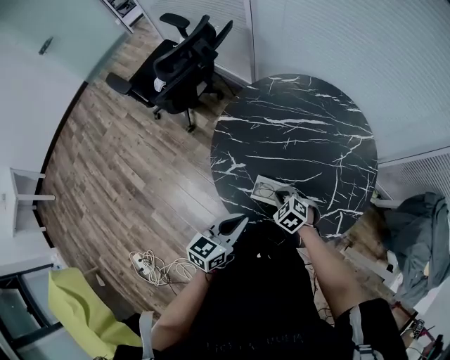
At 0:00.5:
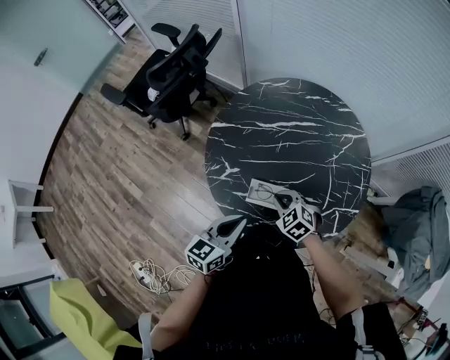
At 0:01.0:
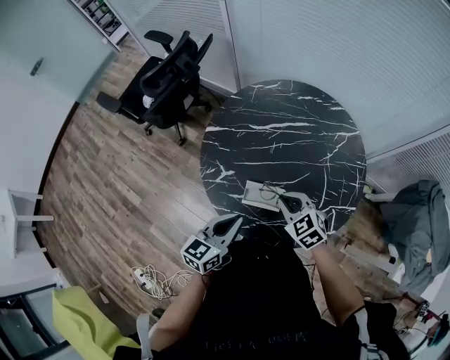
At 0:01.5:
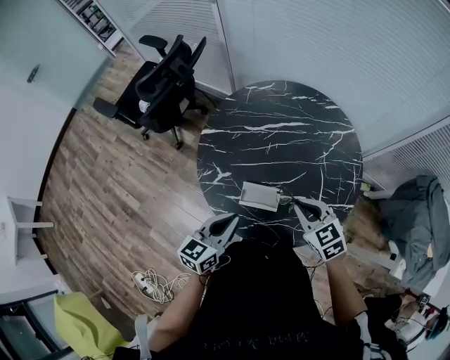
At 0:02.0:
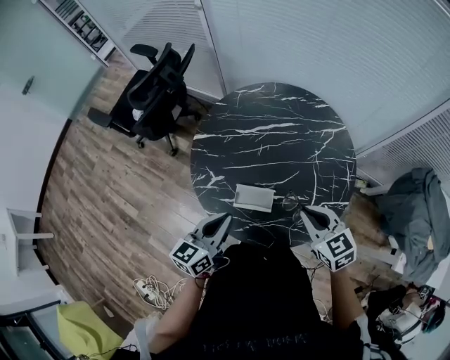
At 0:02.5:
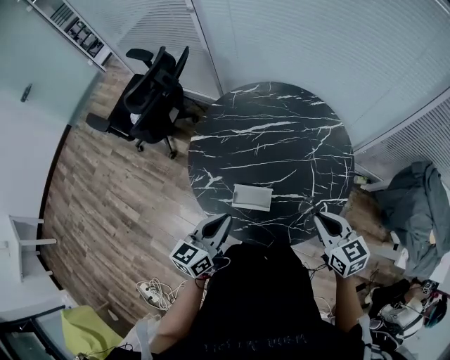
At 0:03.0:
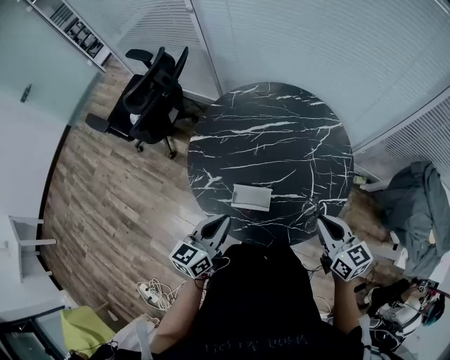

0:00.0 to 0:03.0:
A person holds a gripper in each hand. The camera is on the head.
0:00.0 to 0:01.5: The right gripper goes approximately 20 cm upward and to the right, and turns by some 30 degrees.
0:01.5 to 0:03.0: The right gripper moves to the right, upward and backward, approximately 15 cm, and turns by about 30 degrees.

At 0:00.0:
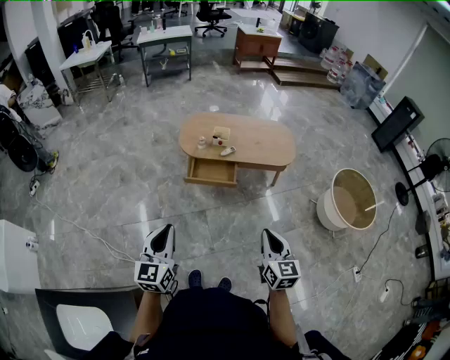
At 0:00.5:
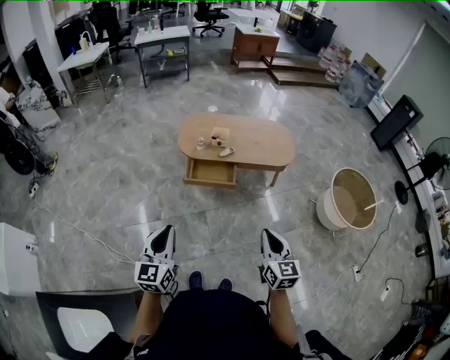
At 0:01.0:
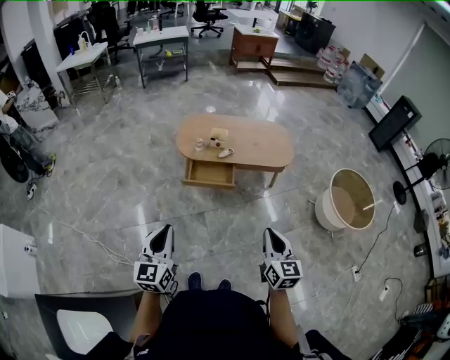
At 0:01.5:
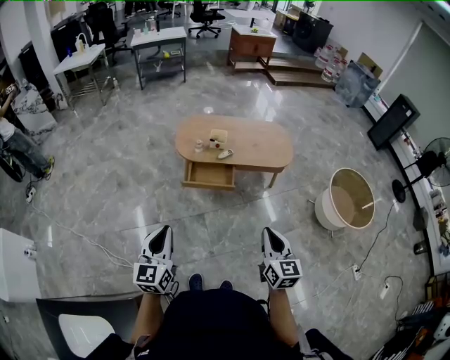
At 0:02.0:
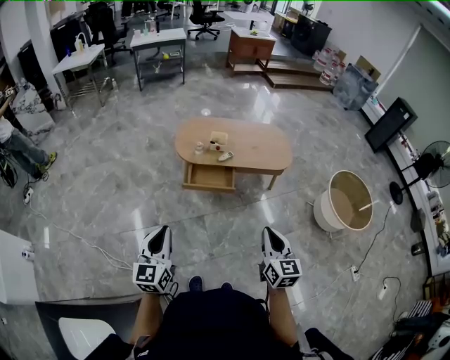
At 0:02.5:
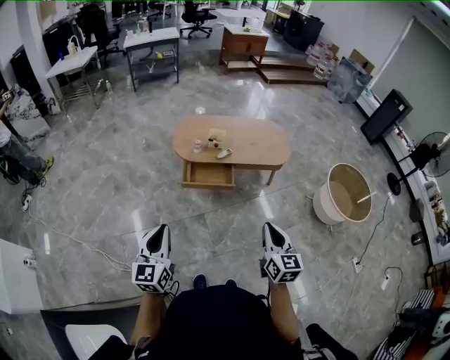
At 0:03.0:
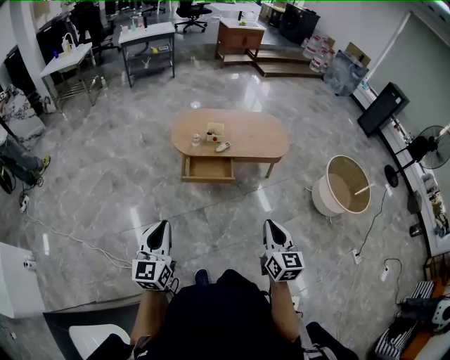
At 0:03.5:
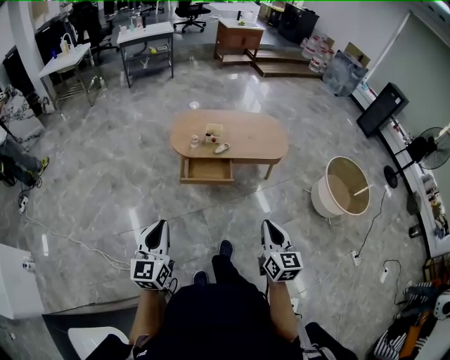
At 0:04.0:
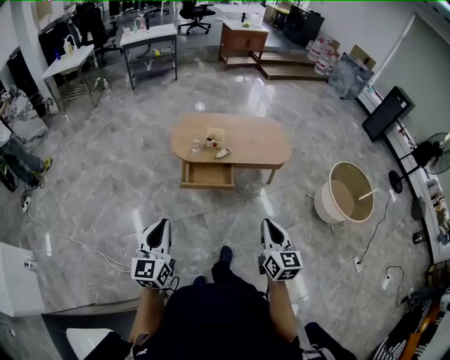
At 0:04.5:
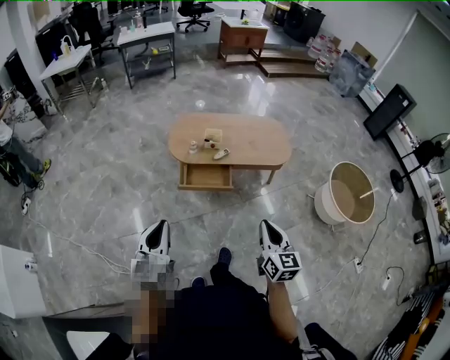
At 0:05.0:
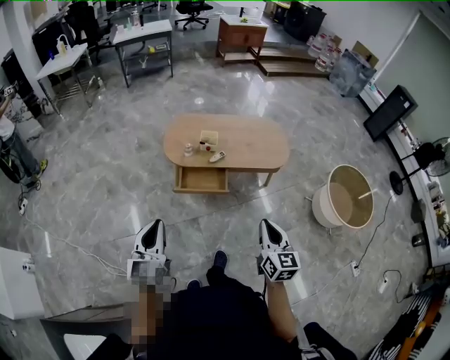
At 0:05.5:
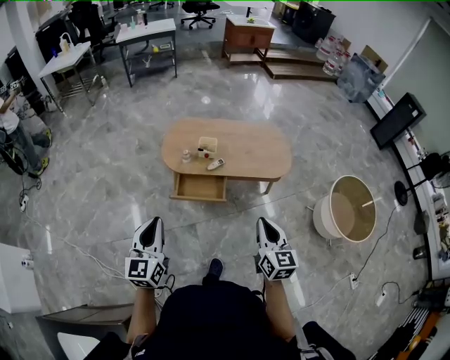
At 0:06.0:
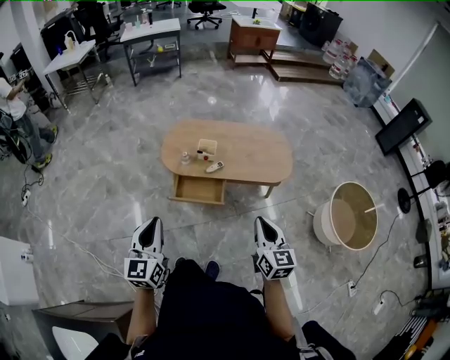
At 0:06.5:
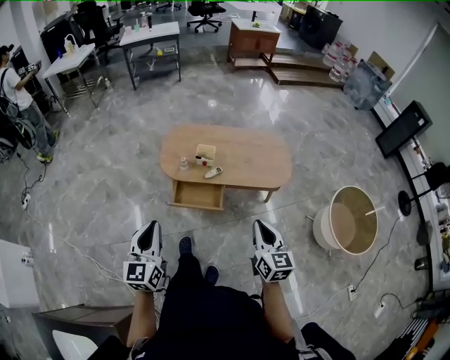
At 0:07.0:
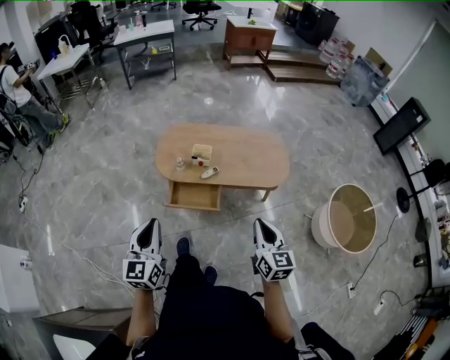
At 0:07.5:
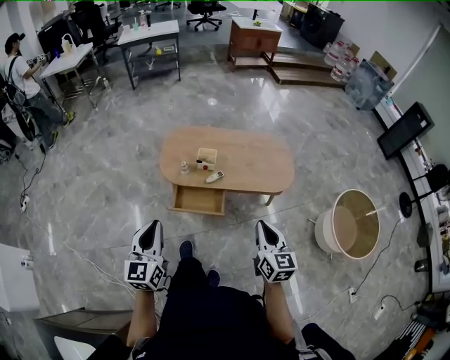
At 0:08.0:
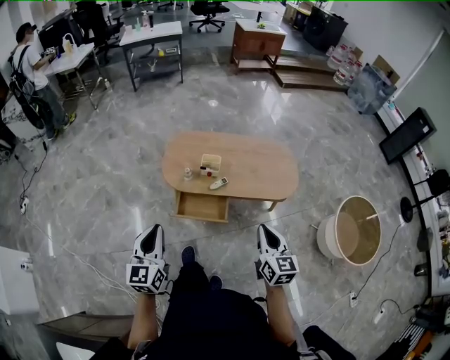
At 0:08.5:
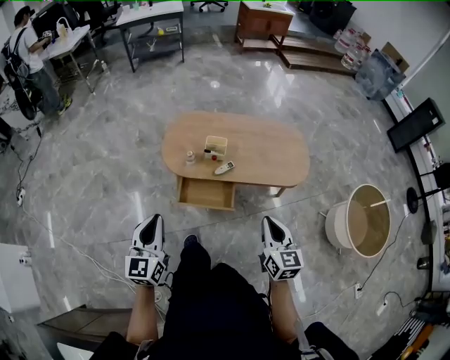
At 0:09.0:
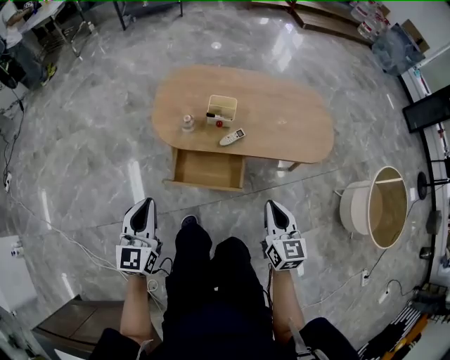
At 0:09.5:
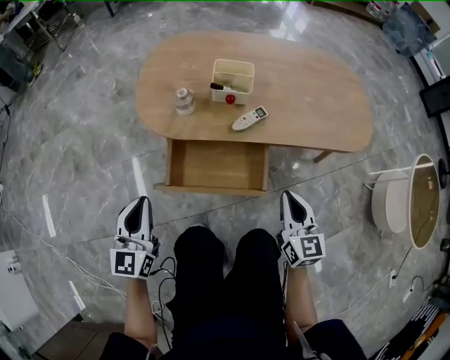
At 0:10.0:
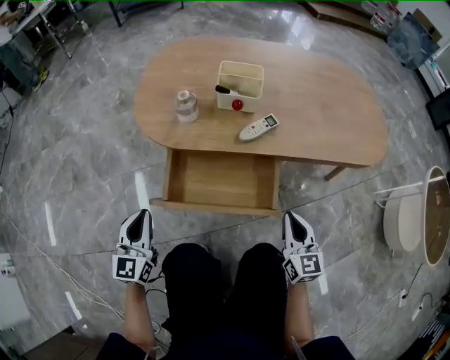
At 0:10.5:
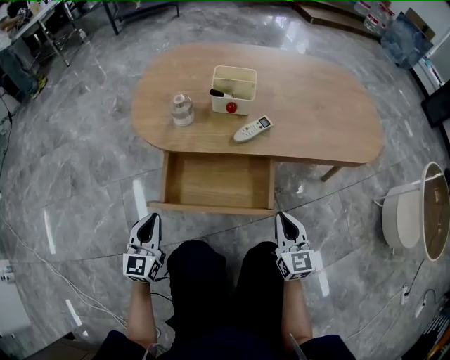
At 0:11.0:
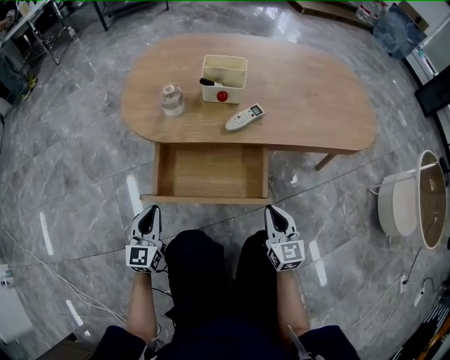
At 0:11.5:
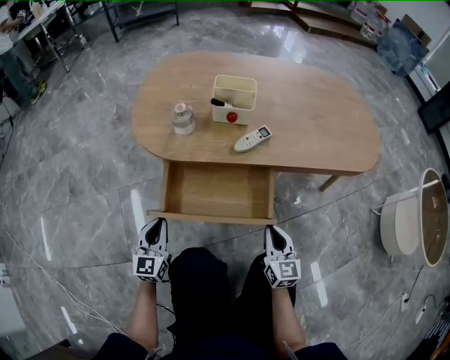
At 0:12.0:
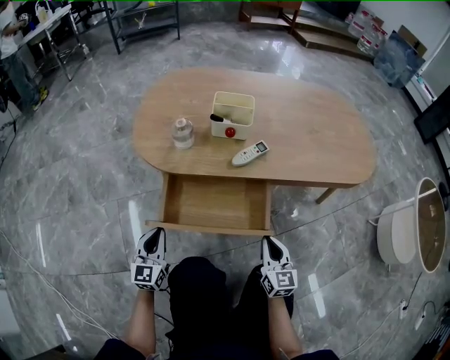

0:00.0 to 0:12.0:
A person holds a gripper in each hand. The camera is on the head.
0:00.0 to 0:02.0: The left gripper shifts by about 5 cm.
0:02.0 to 0:04.0: The grippers stay close to where they were, moving slightly.
0:04.0 to 0:06.0: Both grippers travel together forward and to the right, about 20 cm.
0:06.0 to 0:08.0: The grippers both shift forward by some 10 cm.
0:08.0 to 0:10.0: The grippers both shift downward by roughly 60 cm.
0:10.0 to 0:12.0: The grippers both shift downward by approximately 5 cm.

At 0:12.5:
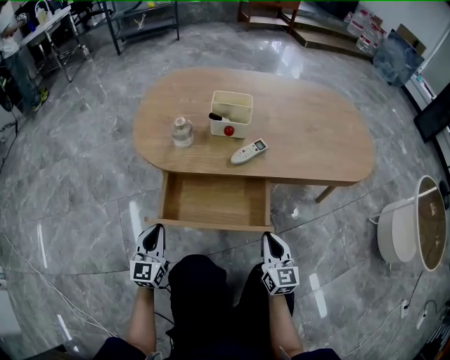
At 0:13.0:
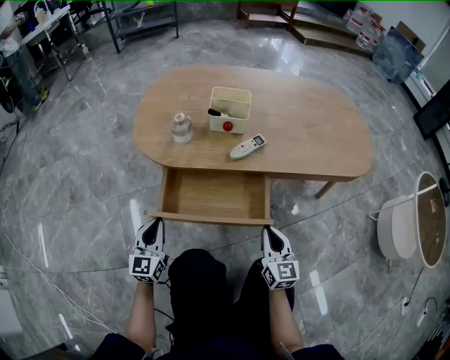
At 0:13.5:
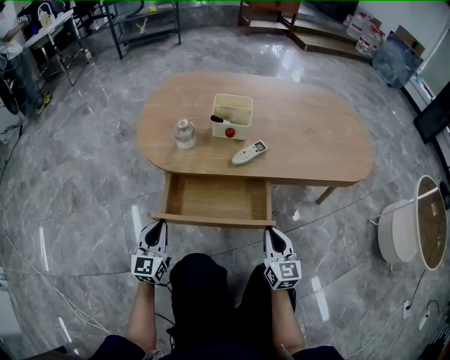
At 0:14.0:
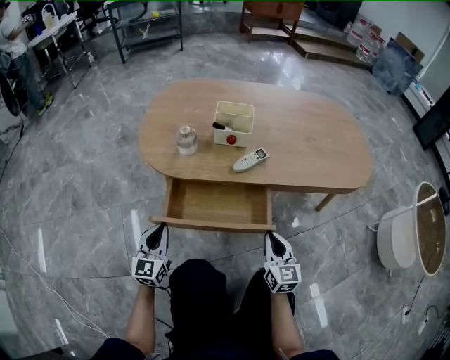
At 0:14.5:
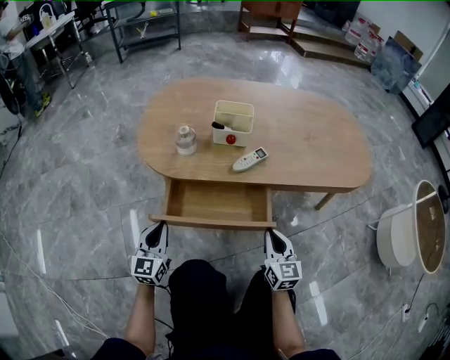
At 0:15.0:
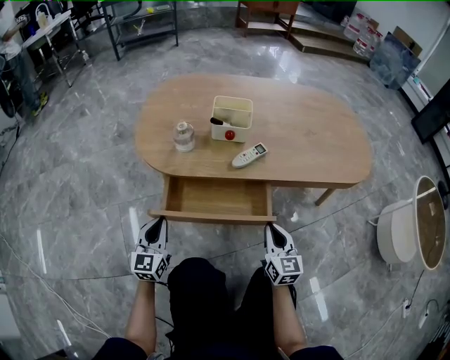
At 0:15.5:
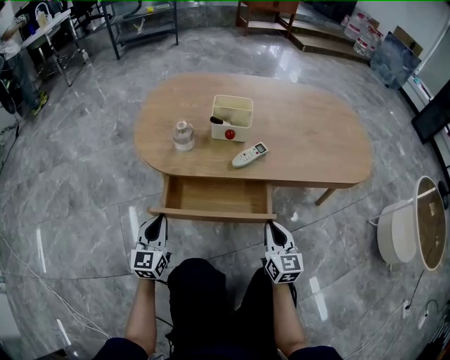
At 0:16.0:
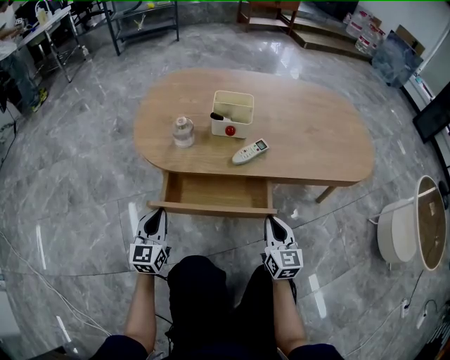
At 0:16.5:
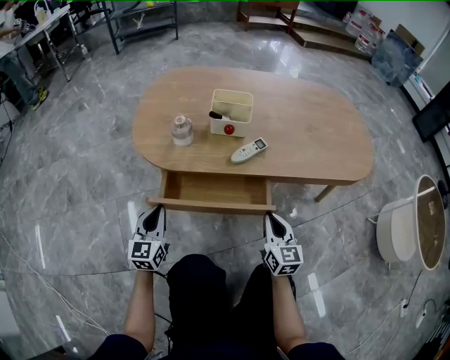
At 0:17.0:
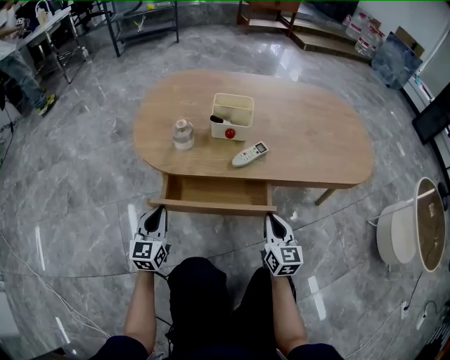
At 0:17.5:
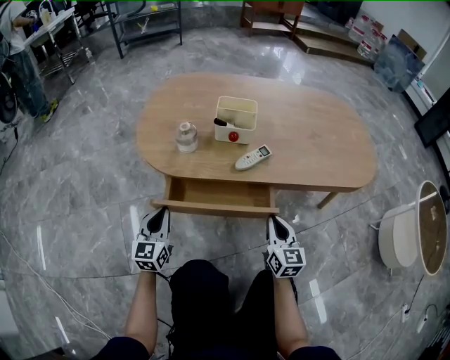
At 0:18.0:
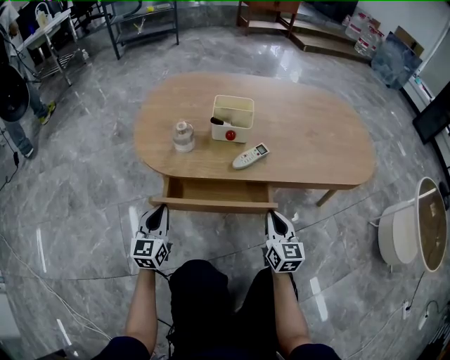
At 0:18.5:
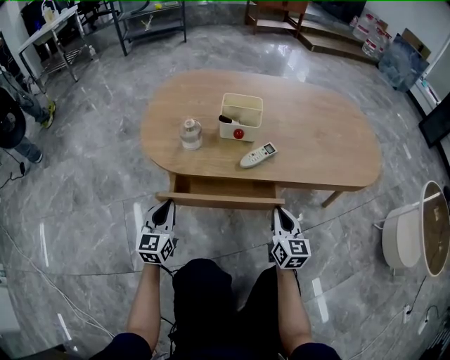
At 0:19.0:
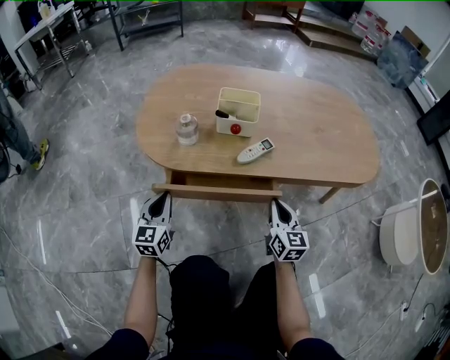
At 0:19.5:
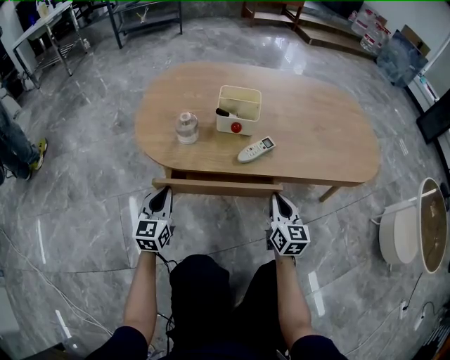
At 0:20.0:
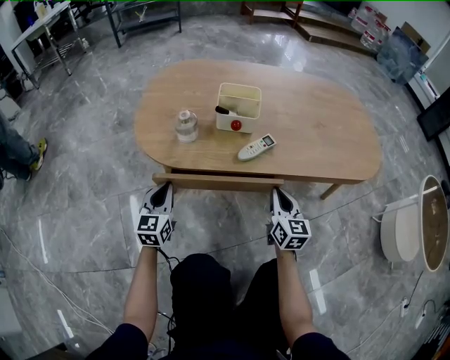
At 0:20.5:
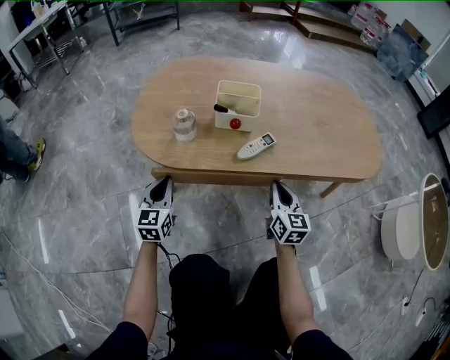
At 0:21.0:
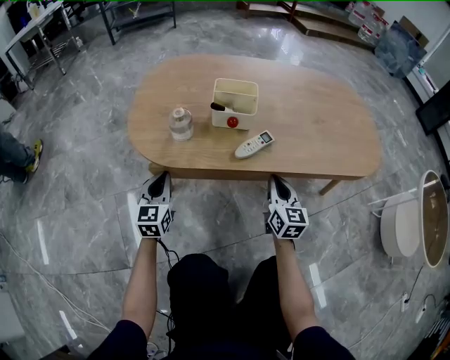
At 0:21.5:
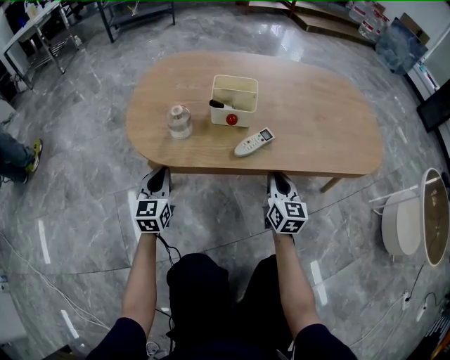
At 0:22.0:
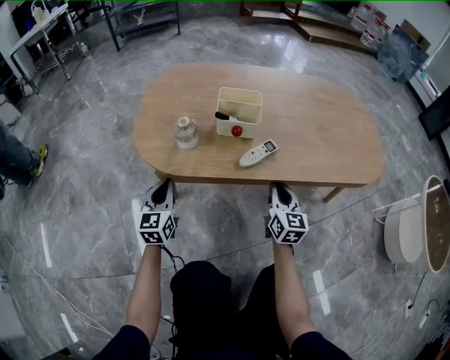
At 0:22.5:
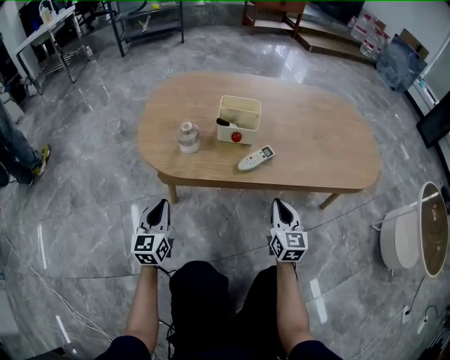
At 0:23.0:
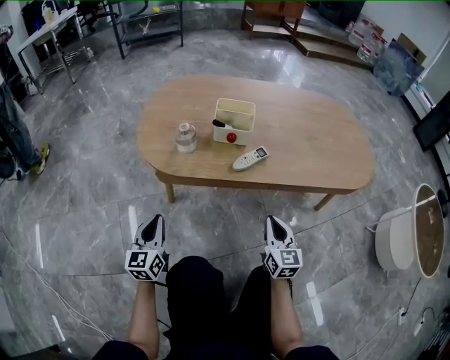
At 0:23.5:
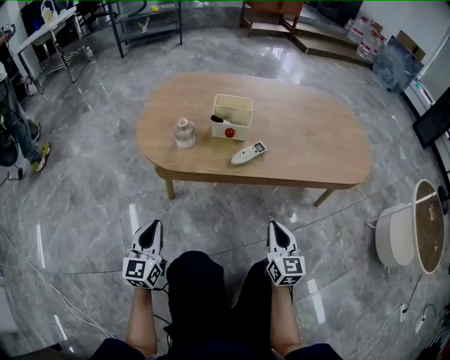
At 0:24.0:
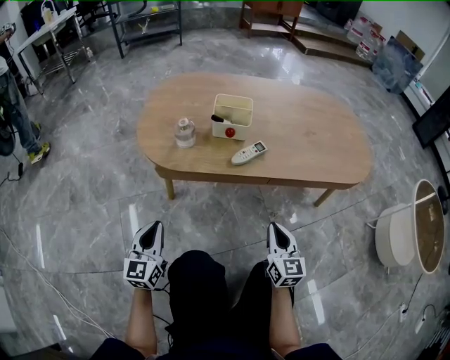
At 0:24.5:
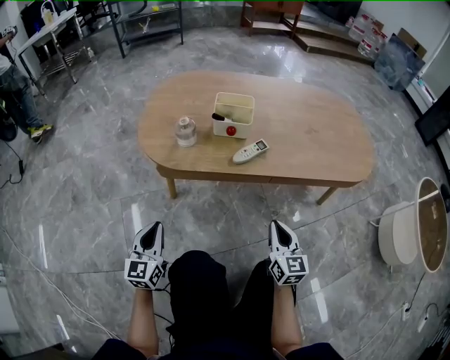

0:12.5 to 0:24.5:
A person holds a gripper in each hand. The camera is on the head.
0:12.5 to 0:16.5: The grippers stay close to where they were, moving slightly.
0:16.5 to 0:18.5: The grippers move only a little.
0:18.5 to 0:20.5: Both grippers travel together forward, roughly 5 cm.
0:20.5 to 0:22.5: The left gripper moves backward, about 5 cm.
0:22.5 to 0:24.5: The two grippers go about 10 cm backward.
